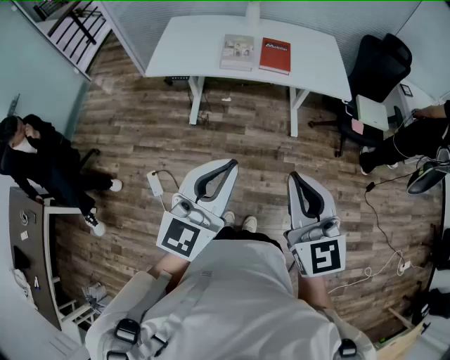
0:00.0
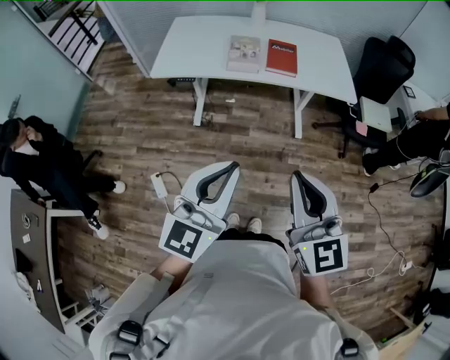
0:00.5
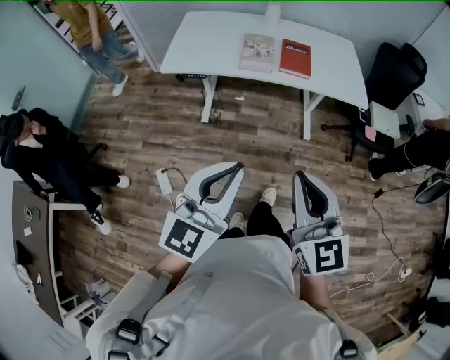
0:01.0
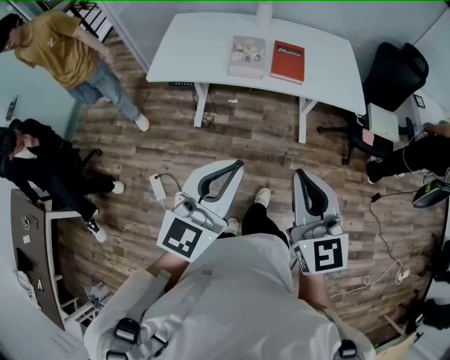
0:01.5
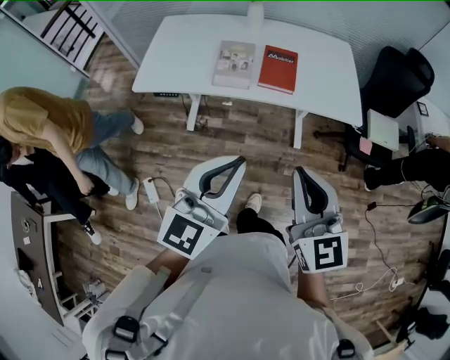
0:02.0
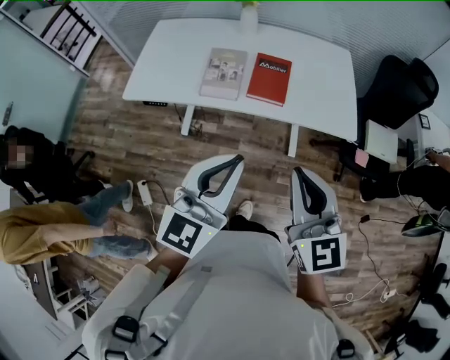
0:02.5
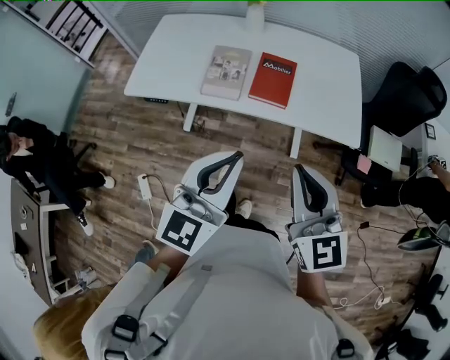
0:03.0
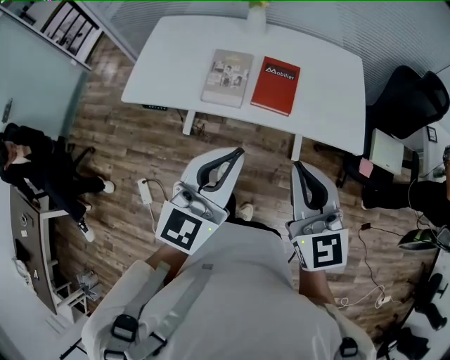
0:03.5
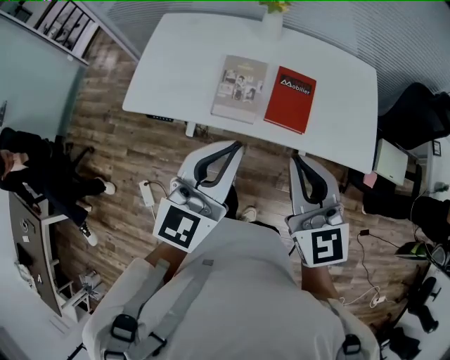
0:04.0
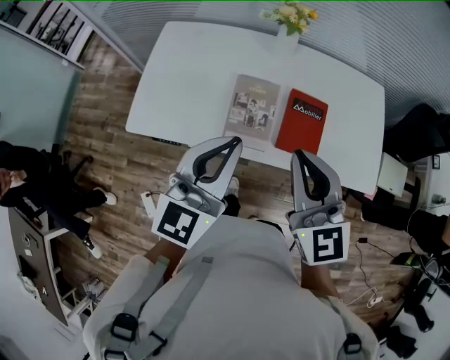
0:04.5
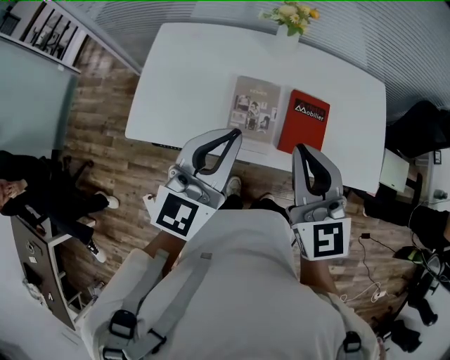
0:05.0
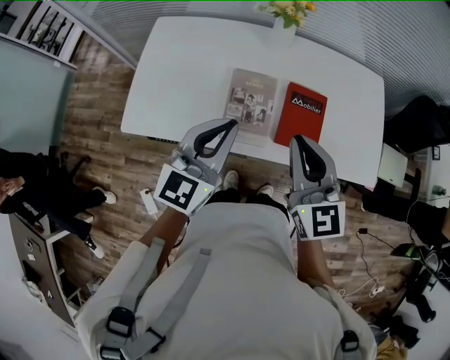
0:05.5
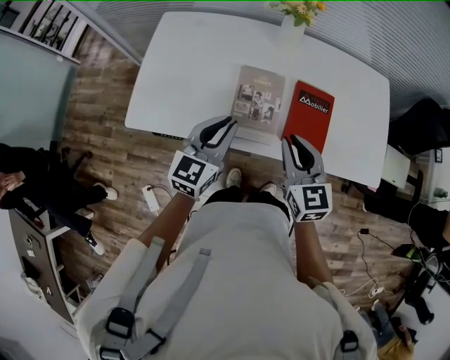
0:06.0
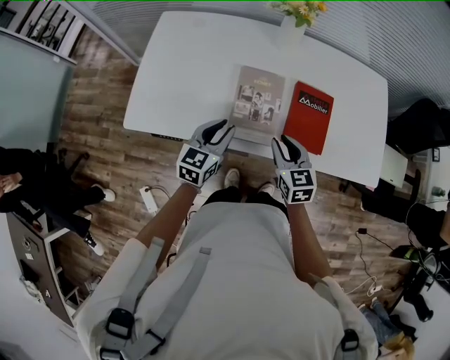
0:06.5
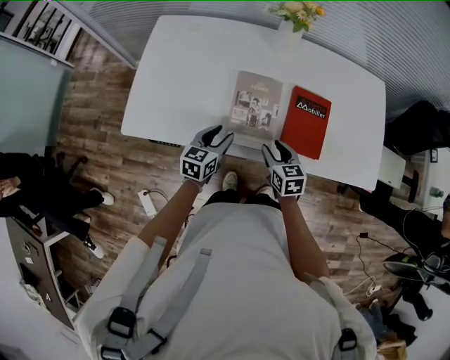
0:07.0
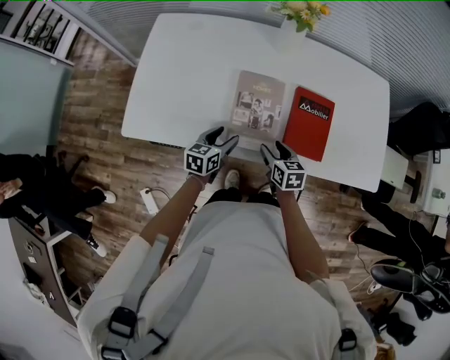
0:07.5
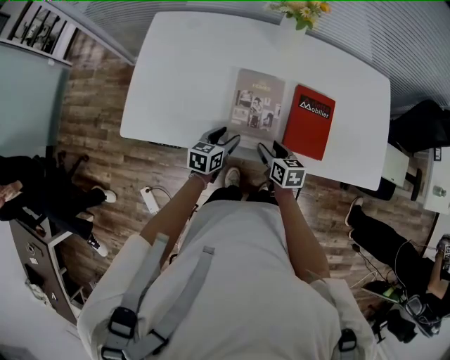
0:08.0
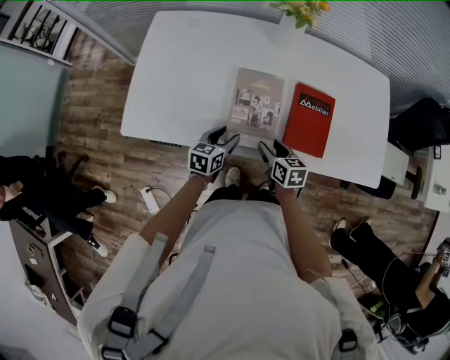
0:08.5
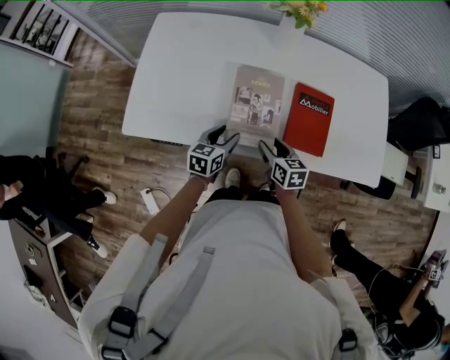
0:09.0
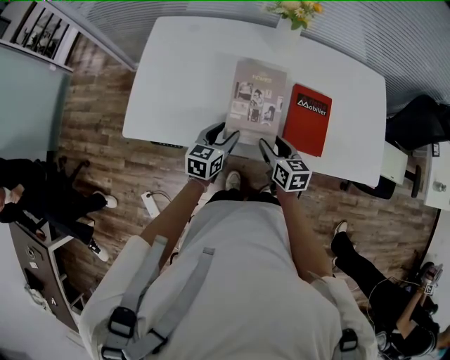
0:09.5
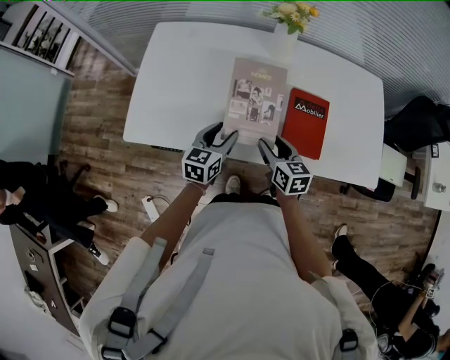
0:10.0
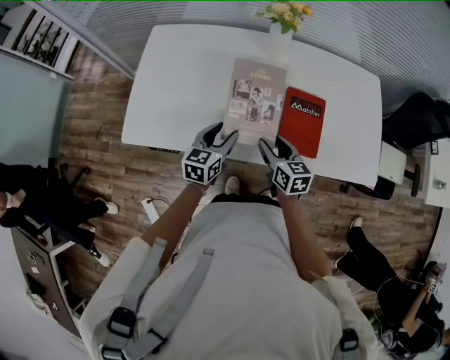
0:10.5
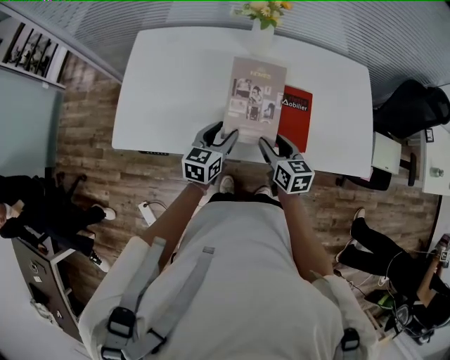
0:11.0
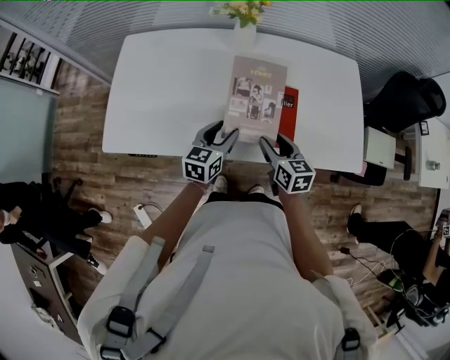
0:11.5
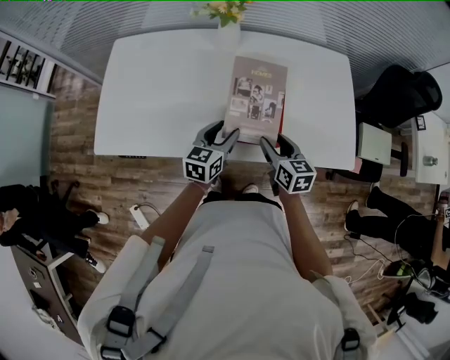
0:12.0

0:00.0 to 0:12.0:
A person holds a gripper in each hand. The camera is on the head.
0:00.0 to 0:02.0: The two grippers go some 20 cm forward.
0:02.0 to 0:04.0: The two grippers go roughly 25 cm forward.
0:04.0 to 0:06.0: The grippers both shift downward, forward and to the left by approximately 25 cm.
0:06.0 to 0:08.0: The grippers both shift downward by roughly 25 cm. The right gripper rotates roughly 40 degrees, and opens up, while the left gripper turns by approximately 30 degrees, and opens.
0:08.0 to 0:10.0: Both grippers travel together upward, about 10 cm.
0:10.0 to 0:12.0: The grippers both shift to the right by roughly 15 cm.

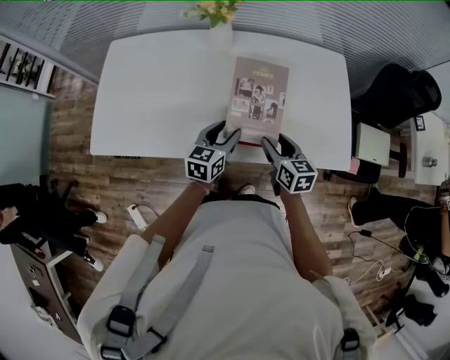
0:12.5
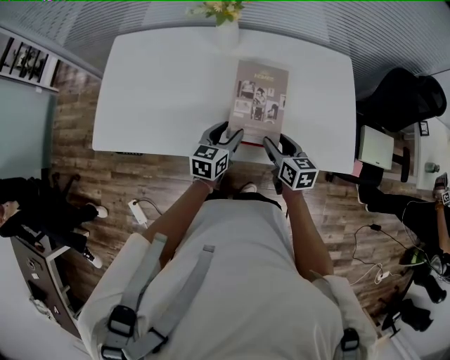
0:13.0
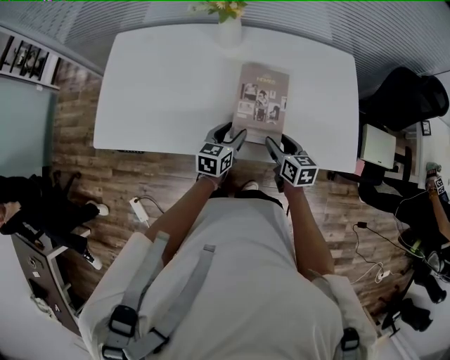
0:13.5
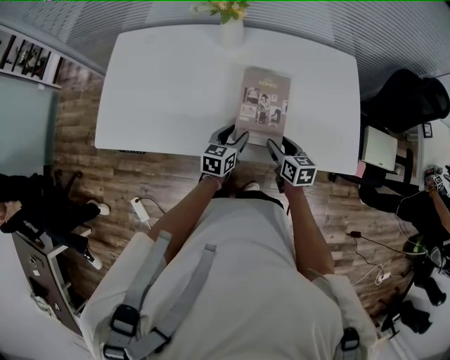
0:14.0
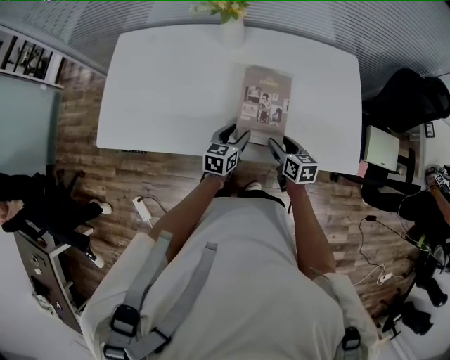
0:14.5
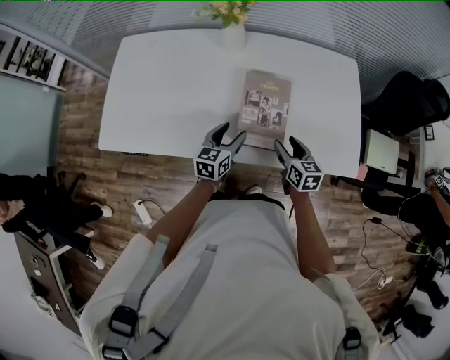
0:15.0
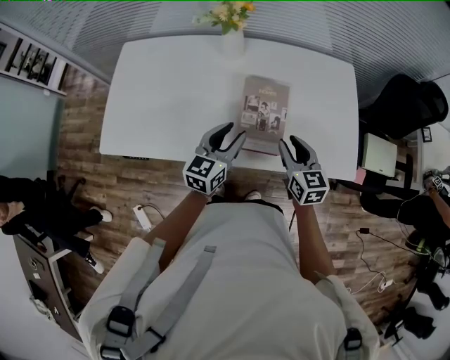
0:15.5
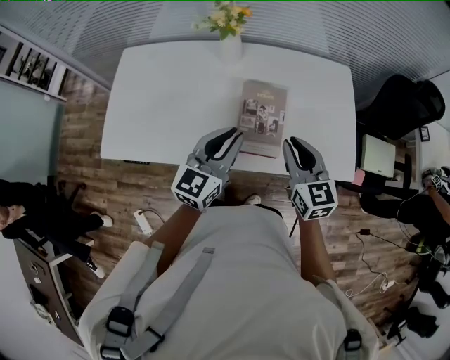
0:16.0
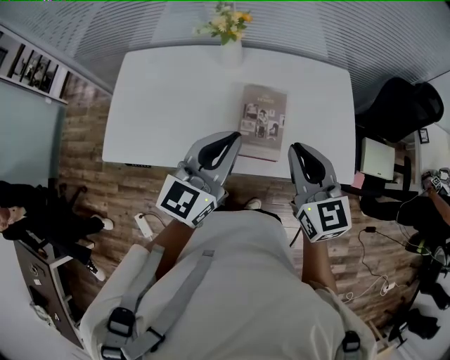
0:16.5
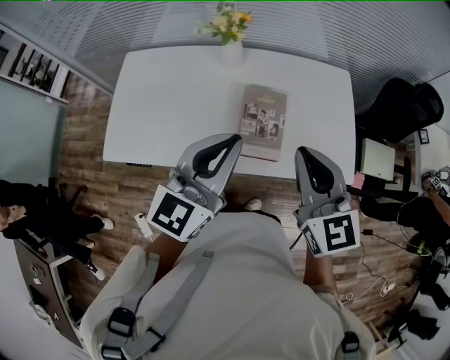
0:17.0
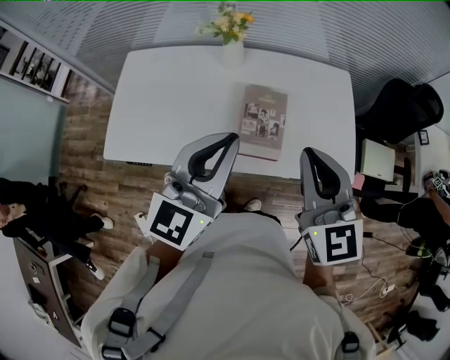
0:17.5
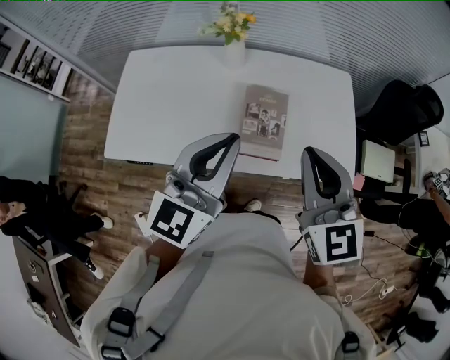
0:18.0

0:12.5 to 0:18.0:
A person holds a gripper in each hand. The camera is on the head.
0:12.5 to 0:14.5: The grippers both shift downward by approximately 10 cm.
0:14.5 to 0:16.0: The grippers both shift upward by roughly 25 cm. The right gripper rotates about 30 degrees, and closes up; the left gripper changes its angle by about 30 degrees, and closes.
0:16.0 to 0:18.0: Both grippers travel together upward, roughly 15 cm.

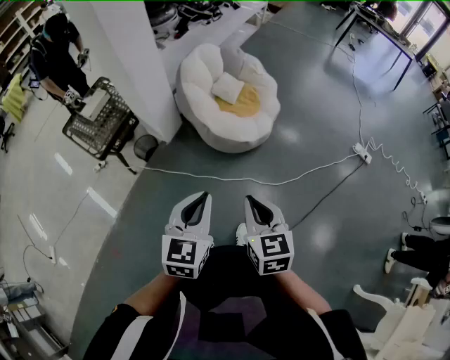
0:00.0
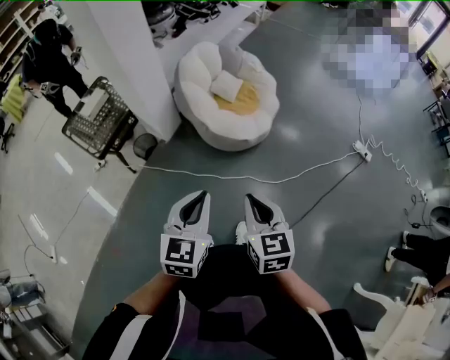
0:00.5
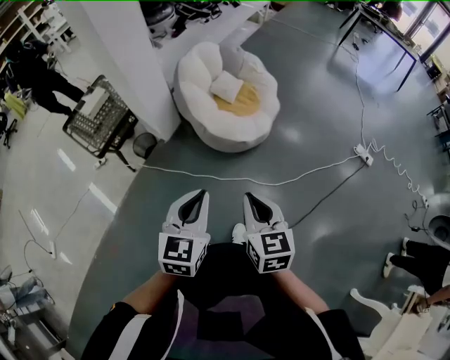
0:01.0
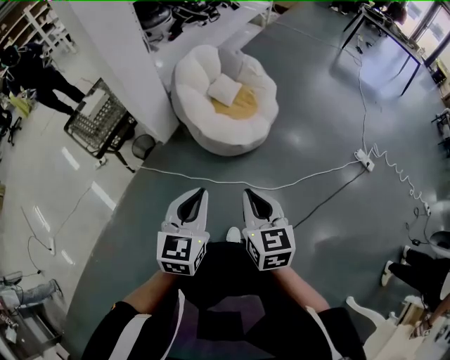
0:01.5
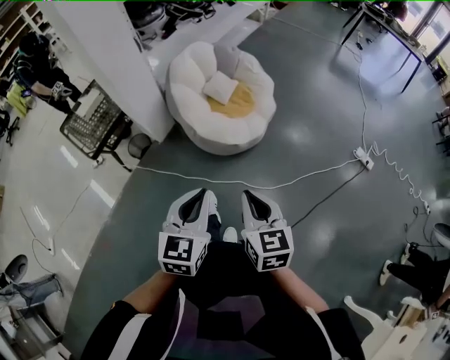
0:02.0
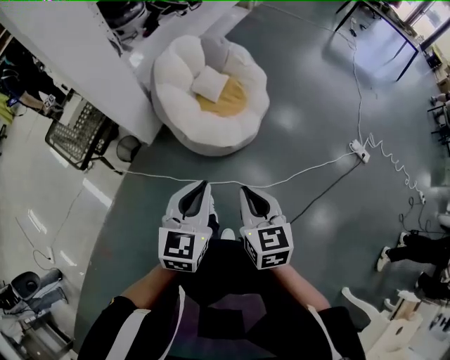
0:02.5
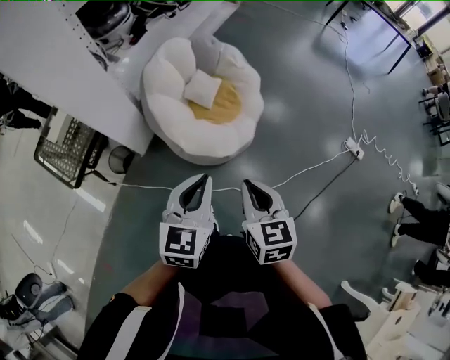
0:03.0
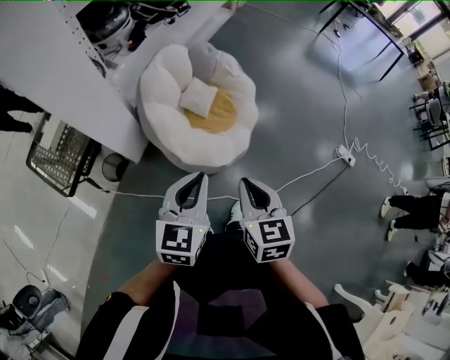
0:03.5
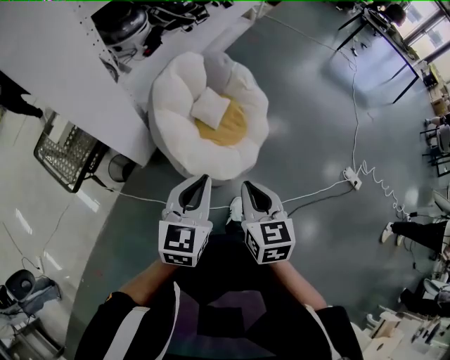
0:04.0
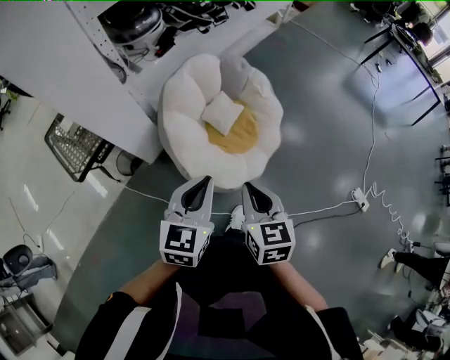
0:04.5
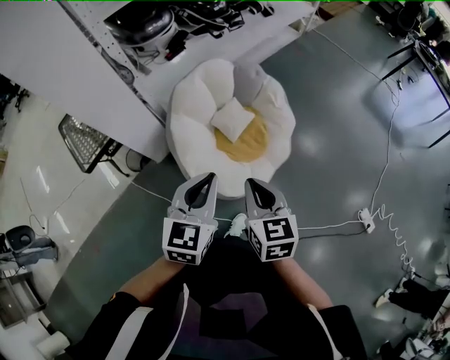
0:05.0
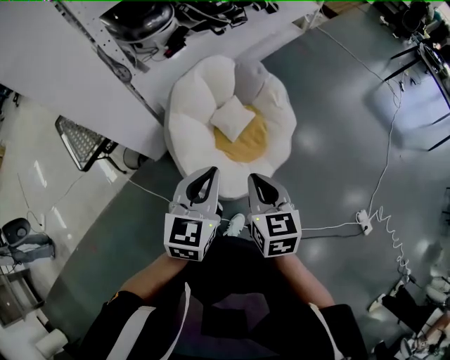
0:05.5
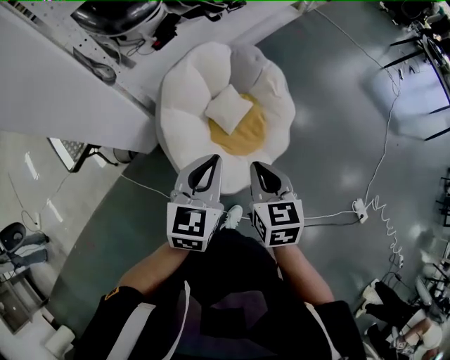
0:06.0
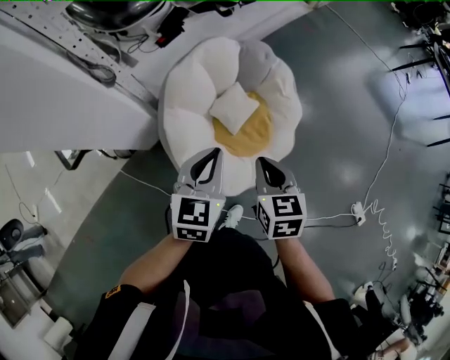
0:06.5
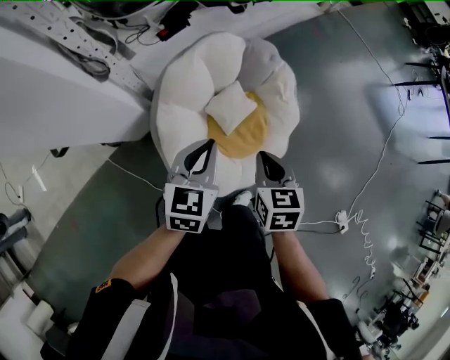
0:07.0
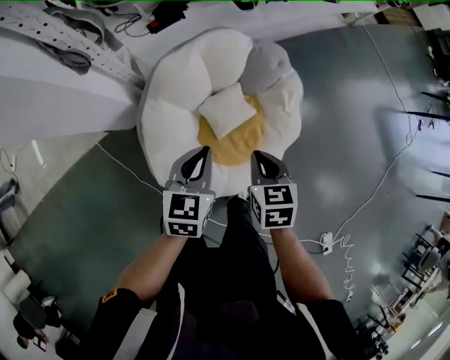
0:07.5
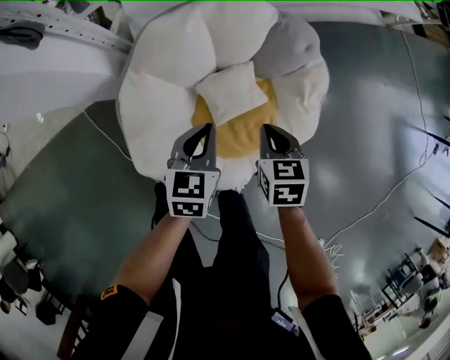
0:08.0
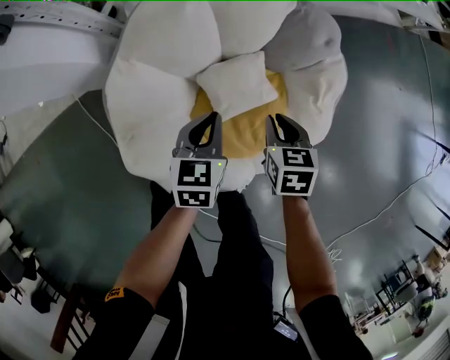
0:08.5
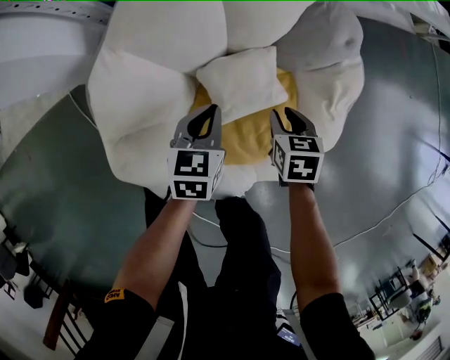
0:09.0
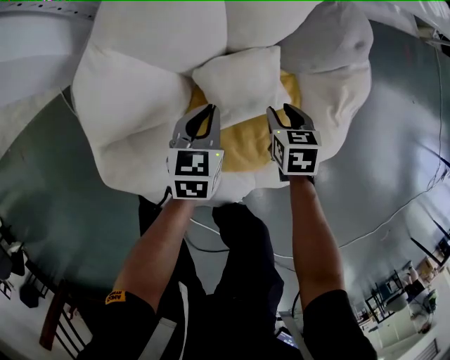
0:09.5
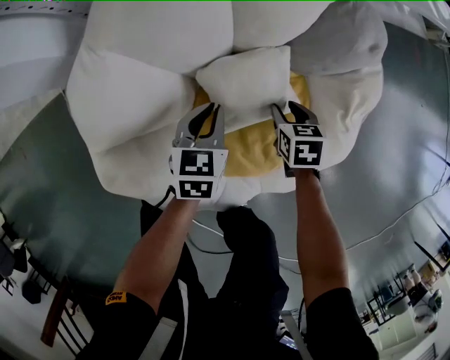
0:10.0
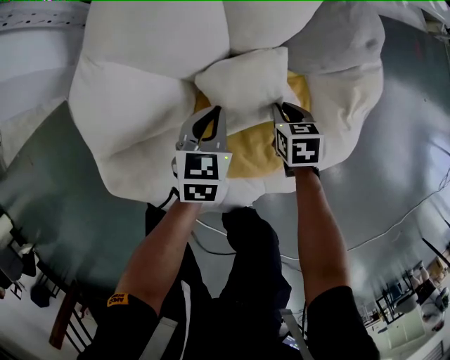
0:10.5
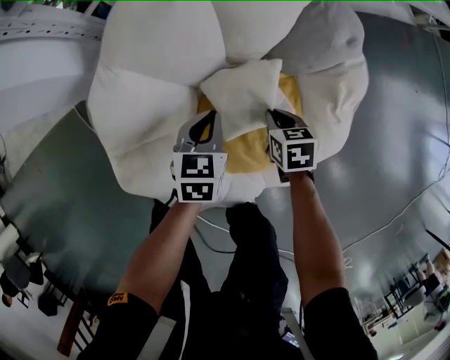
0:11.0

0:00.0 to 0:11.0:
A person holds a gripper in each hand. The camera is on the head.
0:00.0 to 0:02.0: Both grippers travel together to the right and forward, some 10 cm.
0:02.0 to 0:03.5: Both grippers move forward, some 25 cm.
0:03.5 to 0:05.5: The right gripper heads forward, covering roughly 20 cm, and turns by about 20 degrees. The left gripper goes some 20 cm forward and to the right.
0:05.5 to 0:07.5: Both grippers move forward and downward, roughly 30 cm. The left gripper rotates roughly 20 degrees, while the right gripper turns by approximately 20 degrees.
0:07.5 to 0:09.0: The grippers both shift downward by roughly 35 cm. The right gripper opens.
0:09.0 to 0:11.0: The left gripper goes downward and returns, roughly 10 cm each way. The right gripper closes.
